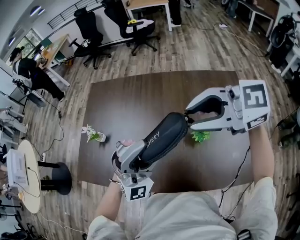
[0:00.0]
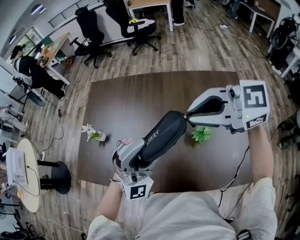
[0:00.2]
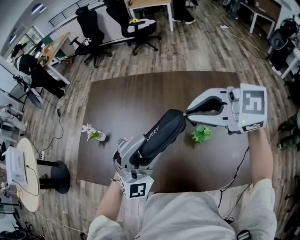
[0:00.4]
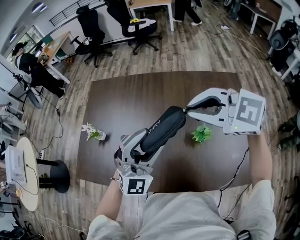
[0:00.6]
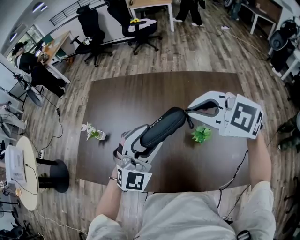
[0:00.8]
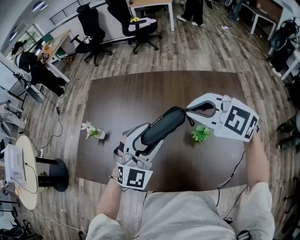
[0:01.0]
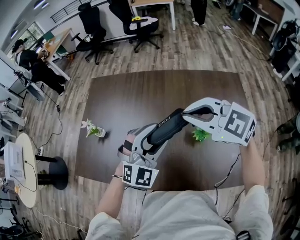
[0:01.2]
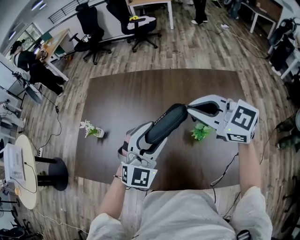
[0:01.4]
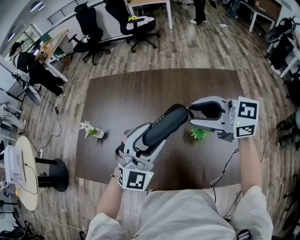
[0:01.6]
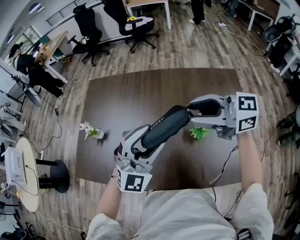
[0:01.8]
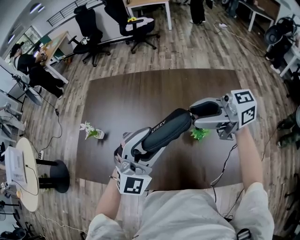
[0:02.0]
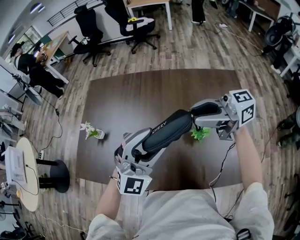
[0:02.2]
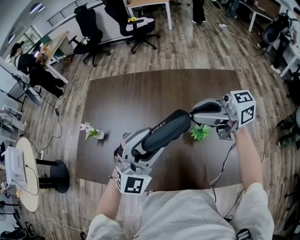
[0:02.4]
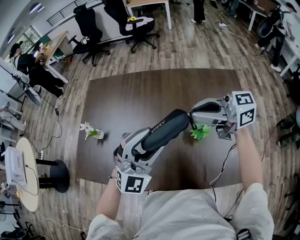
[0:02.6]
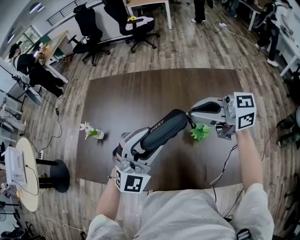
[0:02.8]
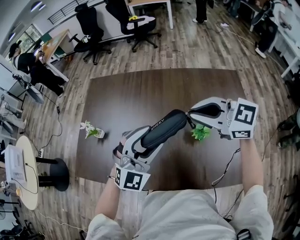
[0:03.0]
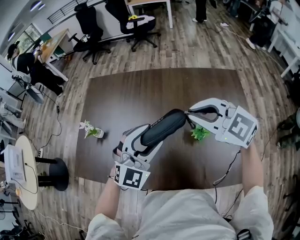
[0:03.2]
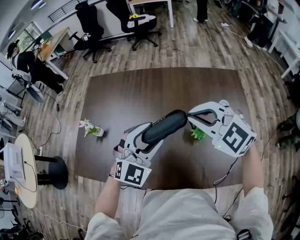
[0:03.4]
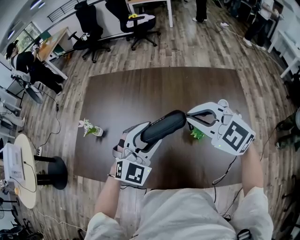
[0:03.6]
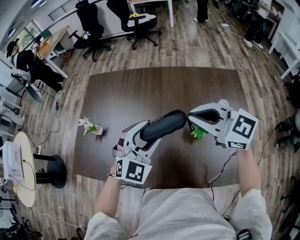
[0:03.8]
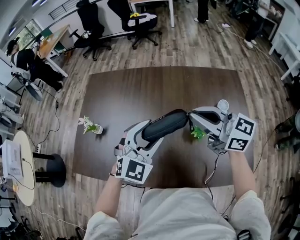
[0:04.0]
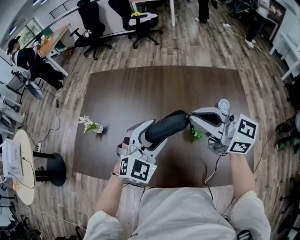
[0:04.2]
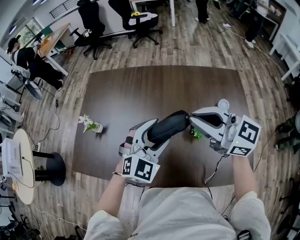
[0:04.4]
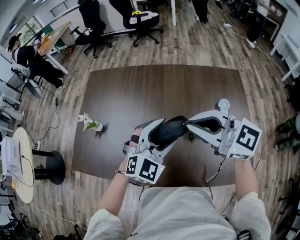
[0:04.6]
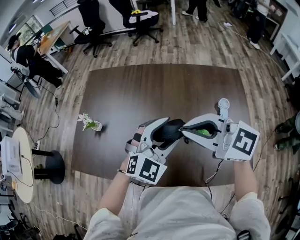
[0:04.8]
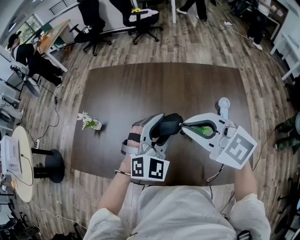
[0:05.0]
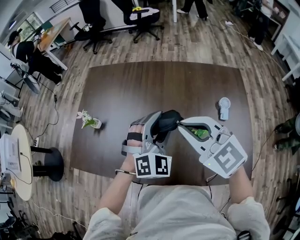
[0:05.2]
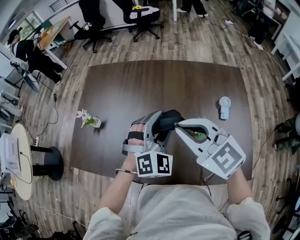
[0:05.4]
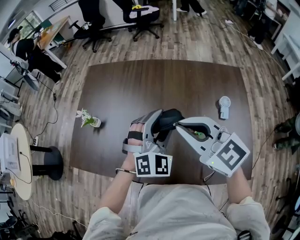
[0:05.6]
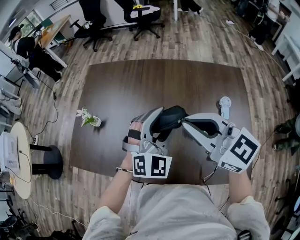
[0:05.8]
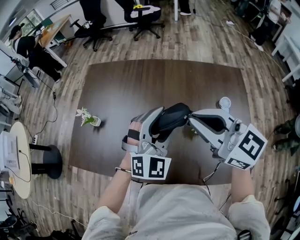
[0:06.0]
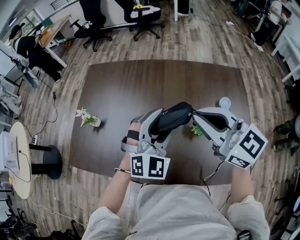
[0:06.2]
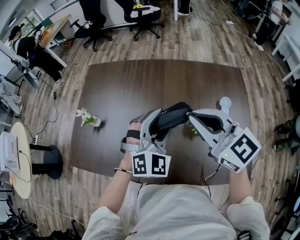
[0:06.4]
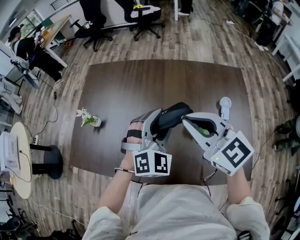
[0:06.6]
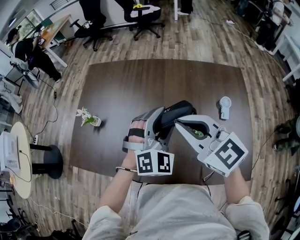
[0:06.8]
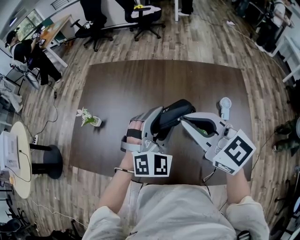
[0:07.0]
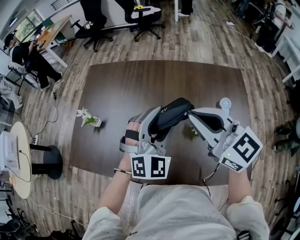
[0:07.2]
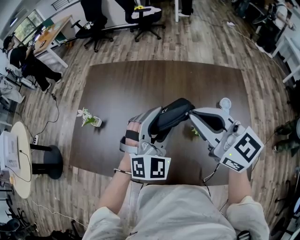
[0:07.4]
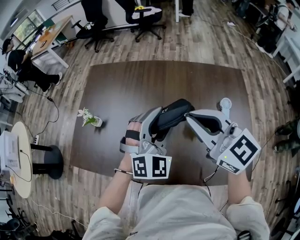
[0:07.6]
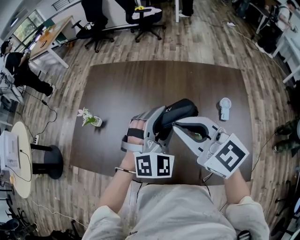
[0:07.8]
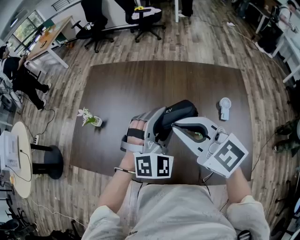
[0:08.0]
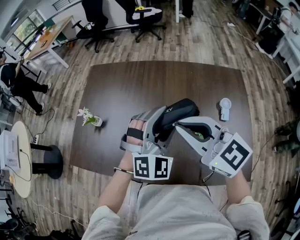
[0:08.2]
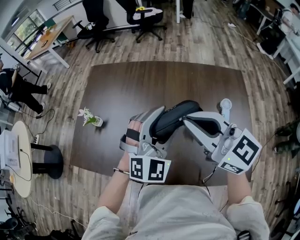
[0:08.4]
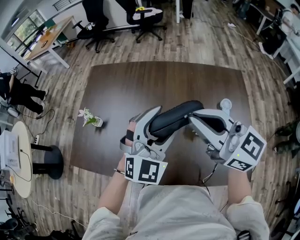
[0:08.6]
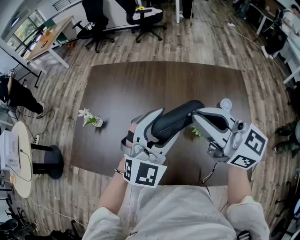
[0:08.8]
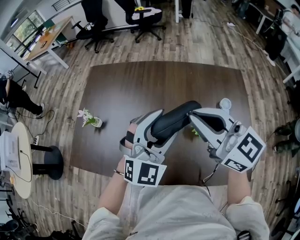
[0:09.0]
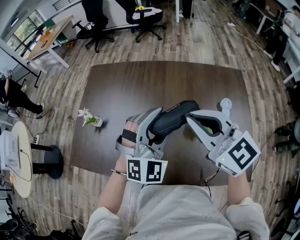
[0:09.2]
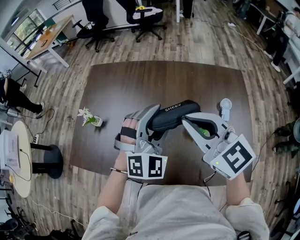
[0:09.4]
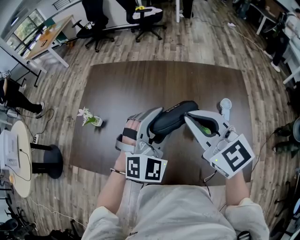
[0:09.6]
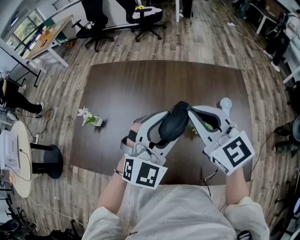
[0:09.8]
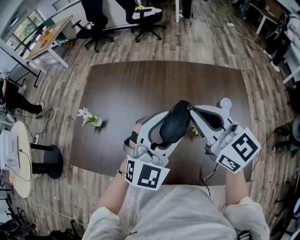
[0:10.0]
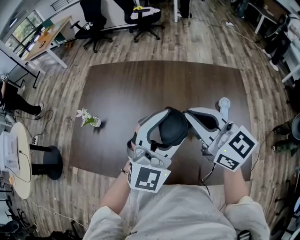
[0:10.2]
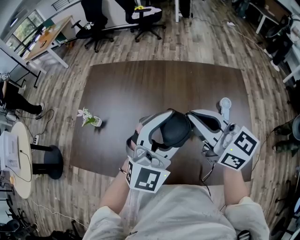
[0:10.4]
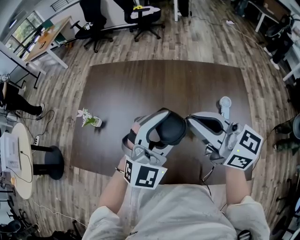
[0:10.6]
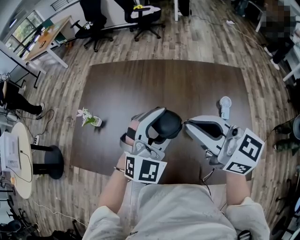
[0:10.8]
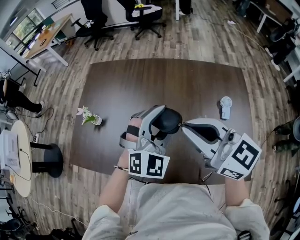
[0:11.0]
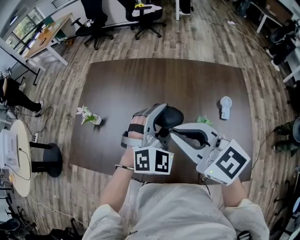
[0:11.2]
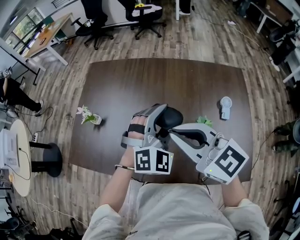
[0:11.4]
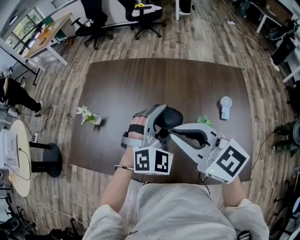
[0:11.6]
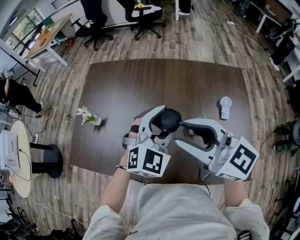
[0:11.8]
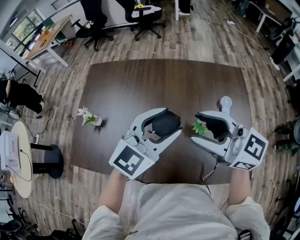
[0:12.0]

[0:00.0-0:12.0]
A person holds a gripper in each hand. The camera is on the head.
0:00.0 to 0:01.6: The right gripper moves downward, some 5 cm, swivels approximately 20 degrees, and closes, then opens again. Meanwhile the left gripper moves approximately 5 cm, and turns by approximately 30 degrees.
0:01.6 to 0:03.0: The right gripper closes its fingers.
0:06.0 to 0:09.0: The grippers stay close to where they were, moving slightly.
0:09.0 to 0:10.4: The left gripper changes place by some 5 cm.
0:10.4 to 0:12.0: The left gripper moves approximately 10 cm downward and comes back, and changes its angle by about 30 degrees. The right gripper opens.

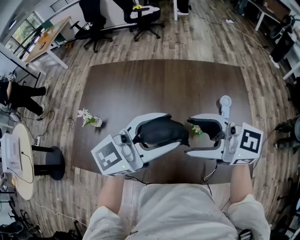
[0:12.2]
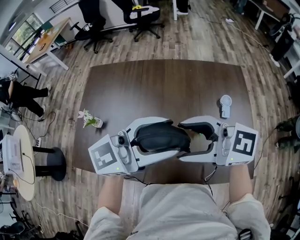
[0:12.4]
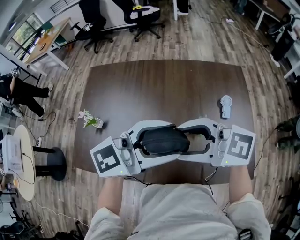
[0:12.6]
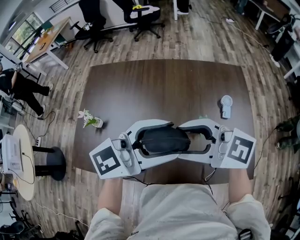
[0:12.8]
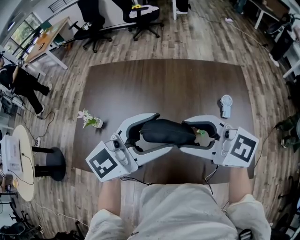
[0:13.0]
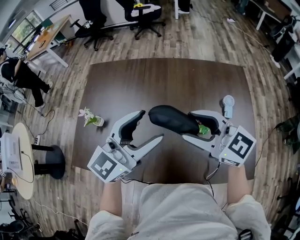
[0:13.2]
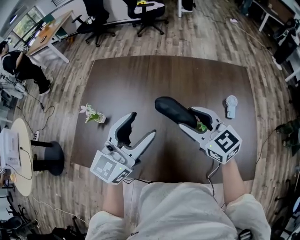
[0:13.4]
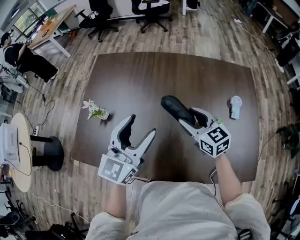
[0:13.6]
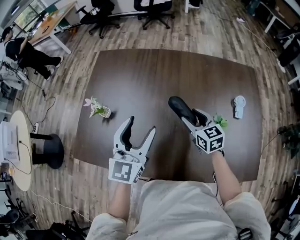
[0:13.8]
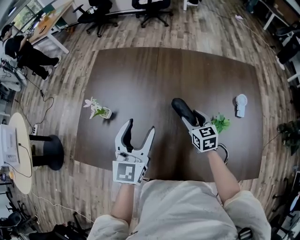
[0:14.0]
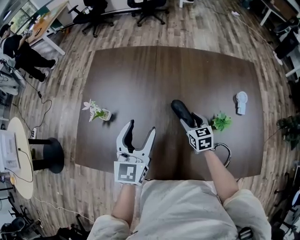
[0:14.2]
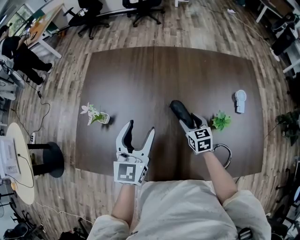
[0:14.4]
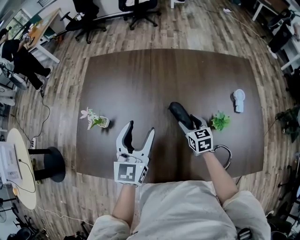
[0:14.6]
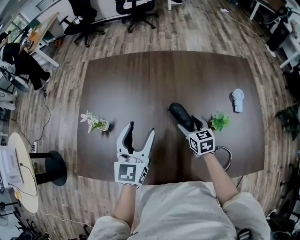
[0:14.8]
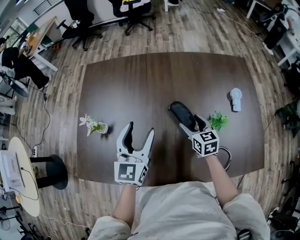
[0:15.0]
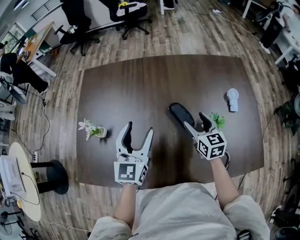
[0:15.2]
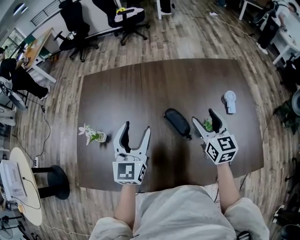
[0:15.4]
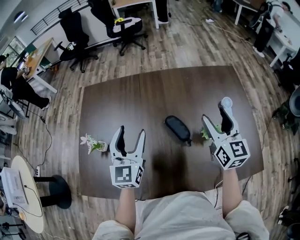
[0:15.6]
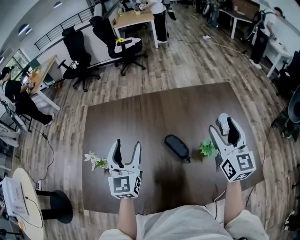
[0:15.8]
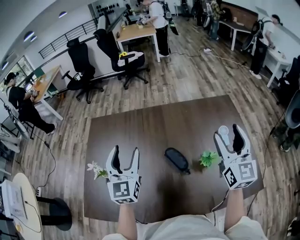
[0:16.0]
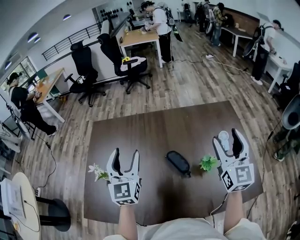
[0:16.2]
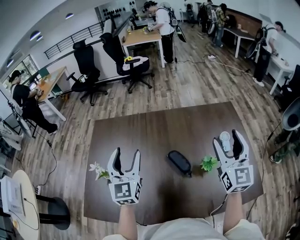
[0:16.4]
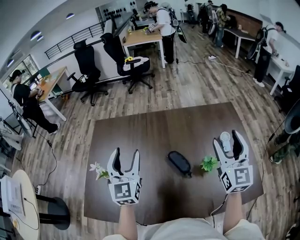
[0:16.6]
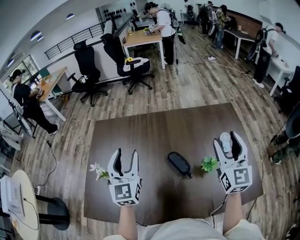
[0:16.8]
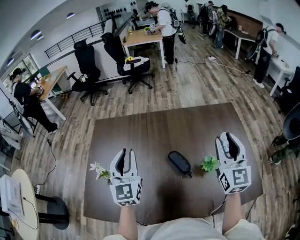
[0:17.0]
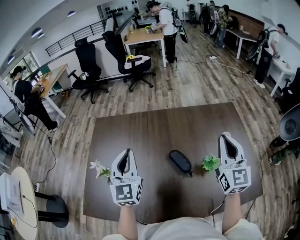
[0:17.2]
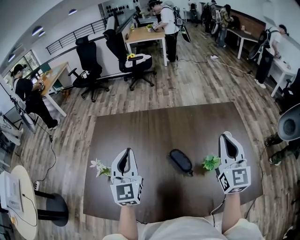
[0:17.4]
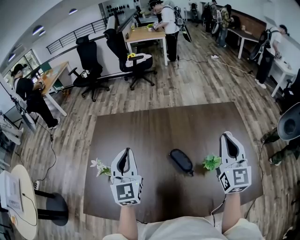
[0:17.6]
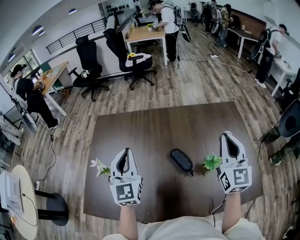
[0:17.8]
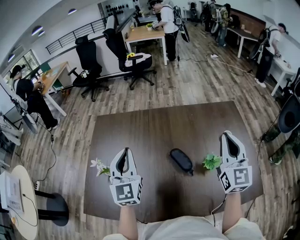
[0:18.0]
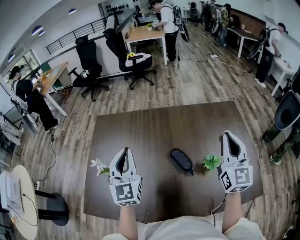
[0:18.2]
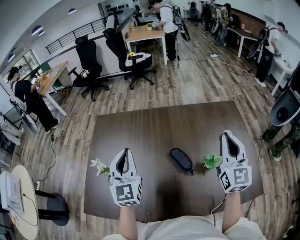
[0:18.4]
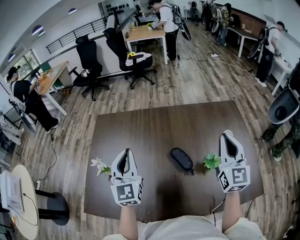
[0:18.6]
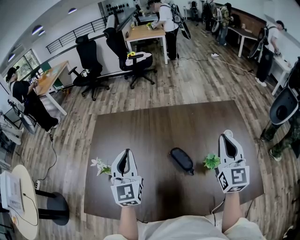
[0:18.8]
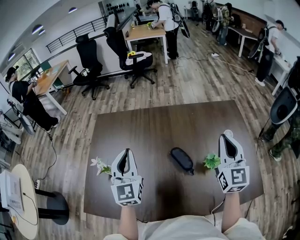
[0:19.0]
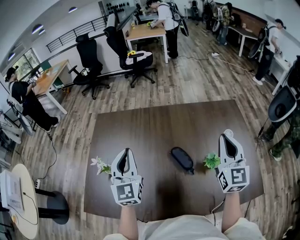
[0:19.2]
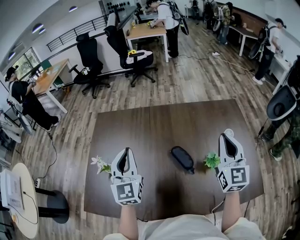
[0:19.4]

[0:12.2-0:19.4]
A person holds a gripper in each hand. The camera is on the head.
0:12.2 to 0:13.6: The left gripper moves roughly 15 cm, and swivels some 40 degrees; the right gripper moves downward, approximately 20 cm, and turns by some 40 degrees.
0:13.6 to 0:15.0: The right gripper goes roughly 10 cm downward, and turns by about 30 degrees. The left gripper moves downward and forward, roughly 10 cm.
0:15.0 to 0:16.6: The right gripper shifts approximately 35 cm upward and to the right, and angles its fingers upward, by some 40 degrees. Meanwhile the left gripper heads upward, covering approximately 10 cm.
0:16.6 to 0:18.0: The right gripper closes. Meanwhile the left gripper closes up.
0:18.0 to 0:19.4: The grippers move only a little.

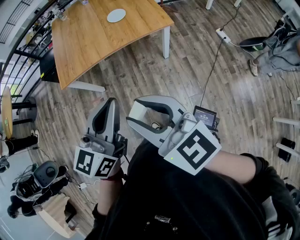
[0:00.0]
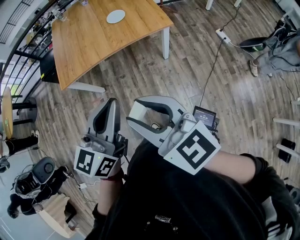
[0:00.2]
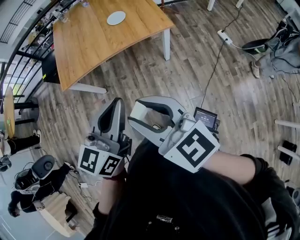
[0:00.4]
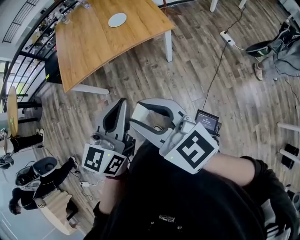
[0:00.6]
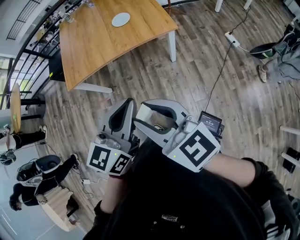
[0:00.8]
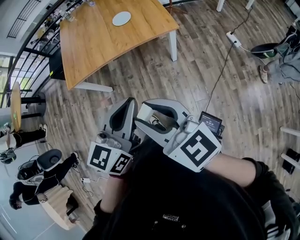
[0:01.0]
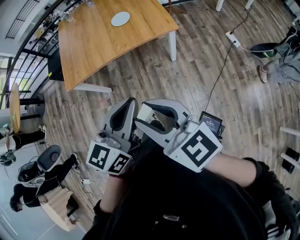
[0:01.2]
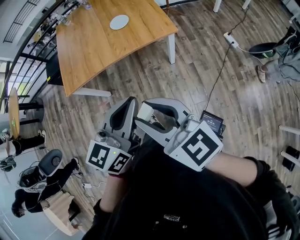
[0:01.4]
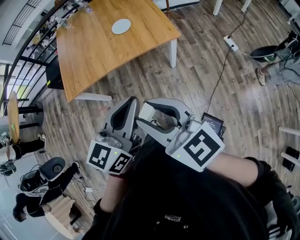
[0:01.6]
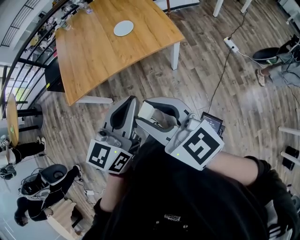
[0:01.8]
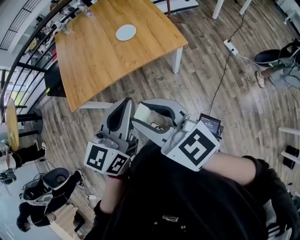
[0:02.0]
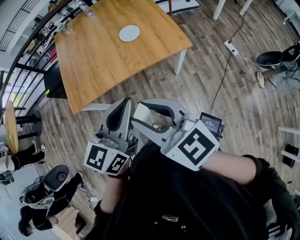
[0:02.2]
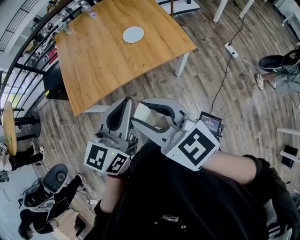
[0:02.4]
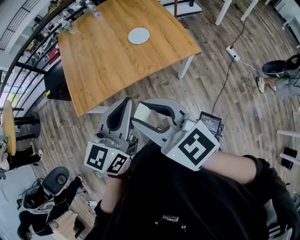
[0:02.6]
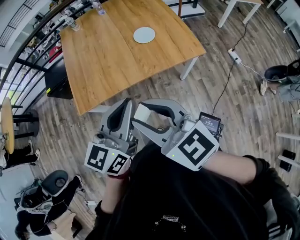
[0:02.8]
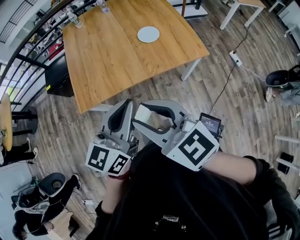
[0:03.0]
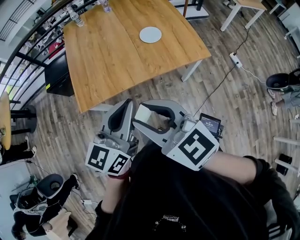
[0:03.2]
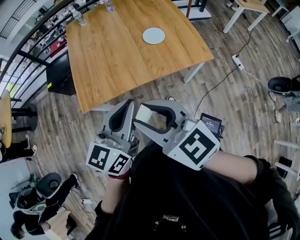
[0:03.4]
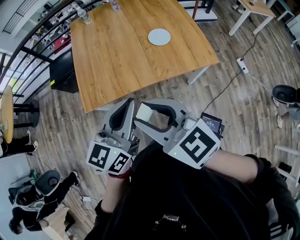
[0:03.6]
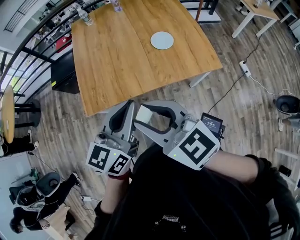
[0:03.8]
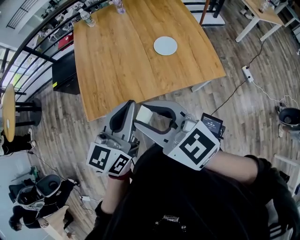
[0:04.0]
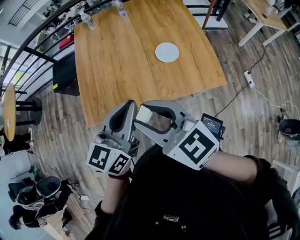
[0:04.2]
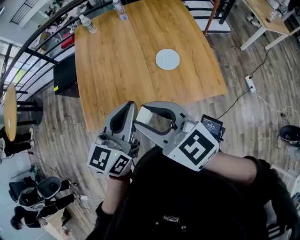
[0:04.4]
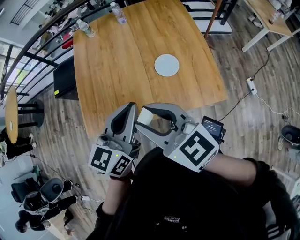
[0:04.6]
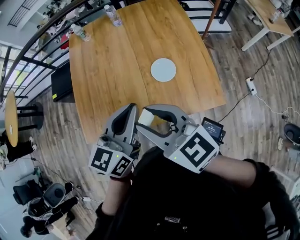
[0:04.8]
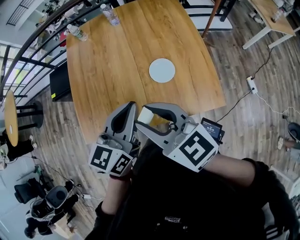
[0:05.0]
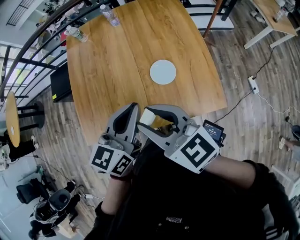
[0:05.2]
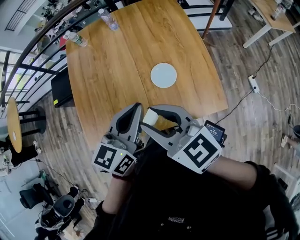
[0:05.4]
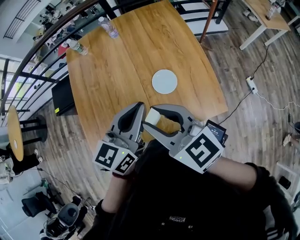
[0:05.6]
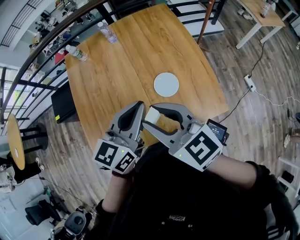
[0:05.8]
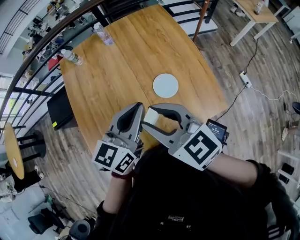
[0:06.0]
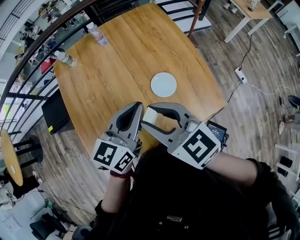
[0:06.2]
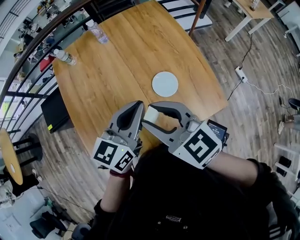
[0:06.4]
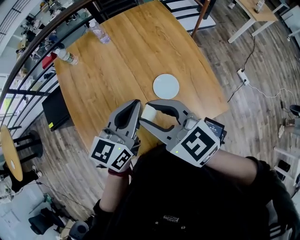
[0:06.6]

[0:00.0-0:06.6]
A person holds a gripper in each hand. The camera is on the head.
0:00.0 to 0:01.6: The left gripper heads forward and to the right, covering approximately 10 cm. Meanwhile the right gripper heads forward, covering roughly 10 cm.
0:01.6 to 0:03.2: Both grippers move to the left and forward, approximately 25 cm.
0:03.2 to 0:05.0: The two grippers go roughly 30 cm forward and to the right.
0:05.0 to 0:06.6: Both grippers move forward, about 10 cm.
